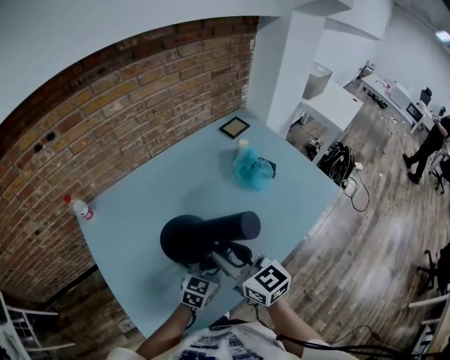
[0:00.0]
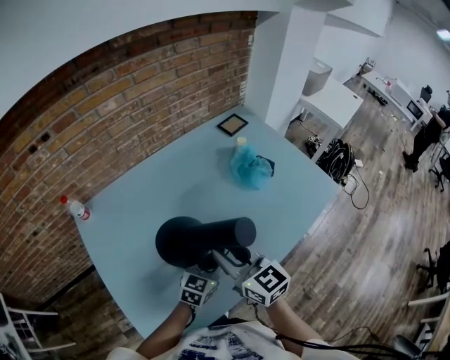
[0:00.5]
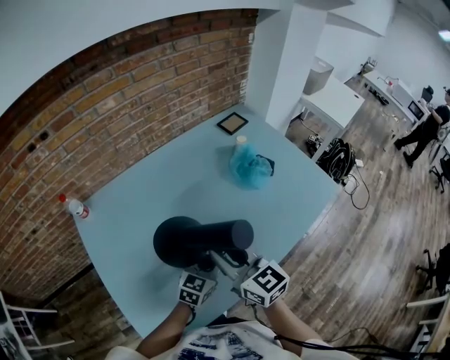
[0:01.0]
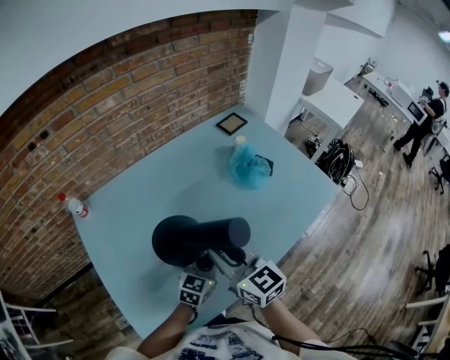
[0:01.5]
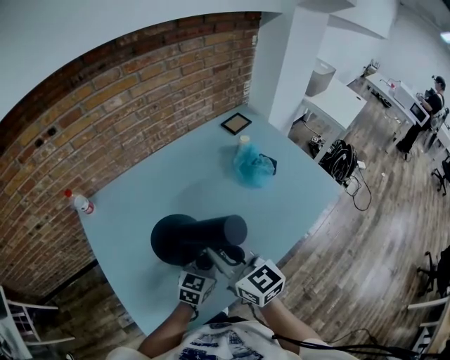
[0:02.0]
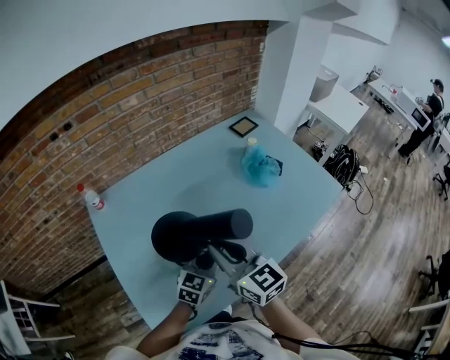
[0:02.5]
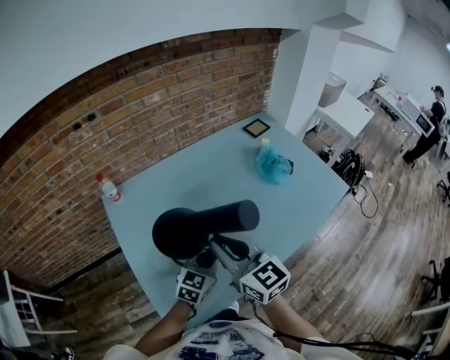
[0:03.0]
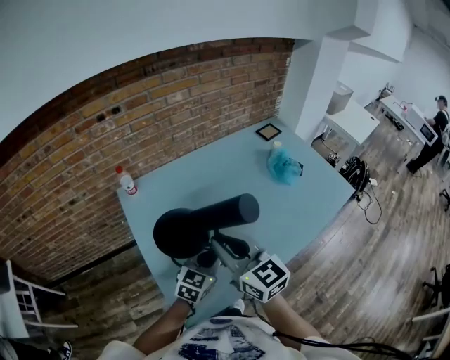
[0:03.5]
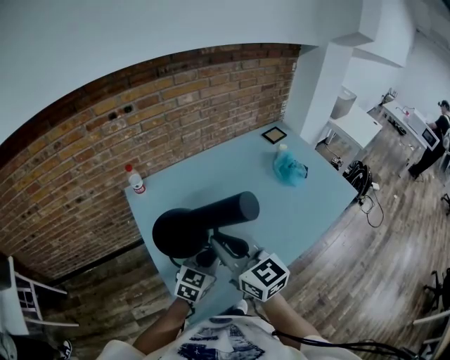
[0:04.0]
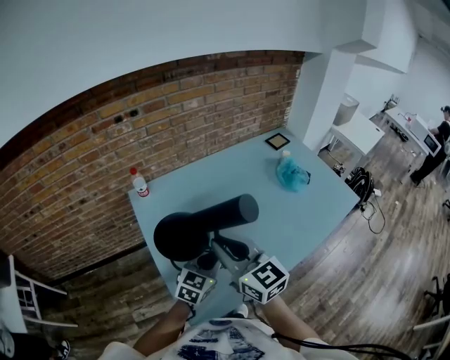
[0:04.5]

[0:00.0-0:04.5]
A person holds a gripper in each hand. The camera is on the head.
0:00.0 to 0:02.0: The right gripper closes; the left gripper closes.
0:02.0 to 0:04.5: The left gripper shifts approximately 25 cm to the left and backward. Meanwhile the right gripper goes roughly 25 cm to the left, backward and upward.

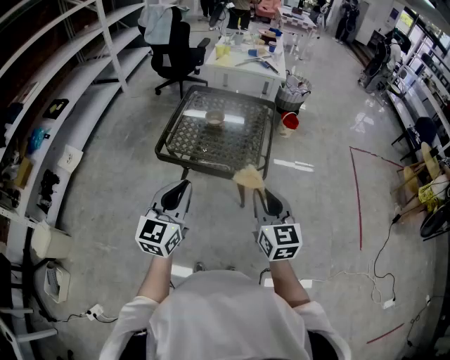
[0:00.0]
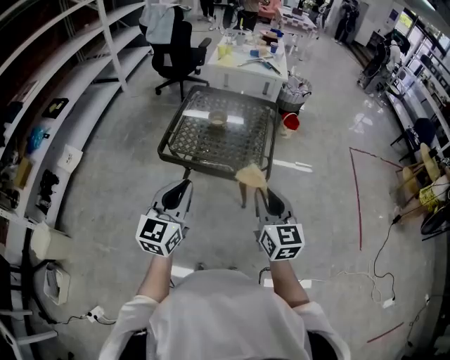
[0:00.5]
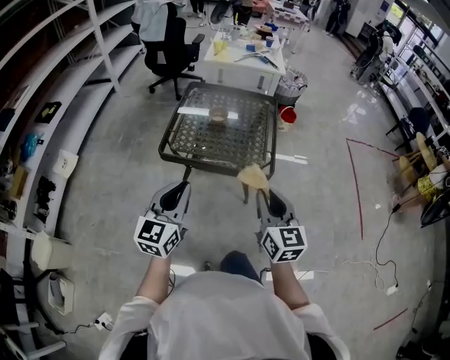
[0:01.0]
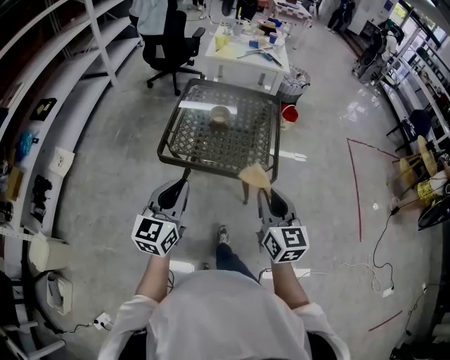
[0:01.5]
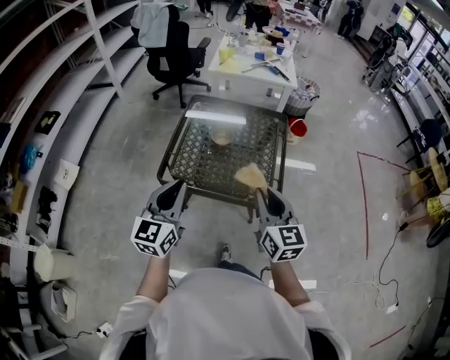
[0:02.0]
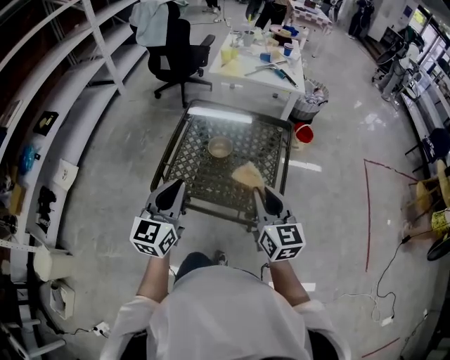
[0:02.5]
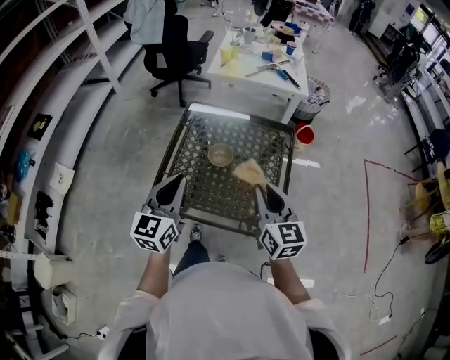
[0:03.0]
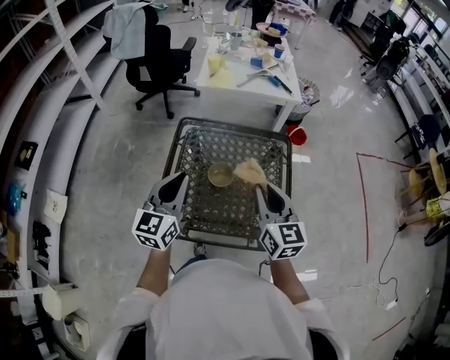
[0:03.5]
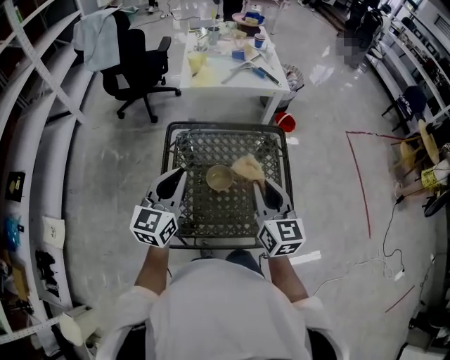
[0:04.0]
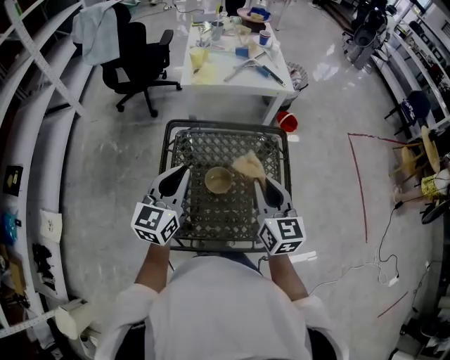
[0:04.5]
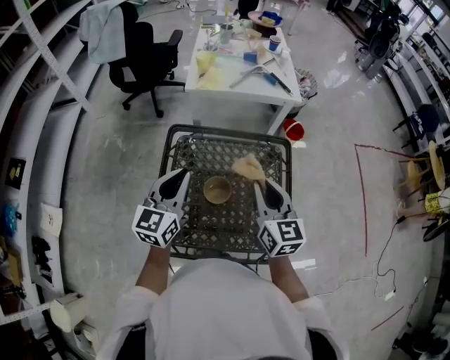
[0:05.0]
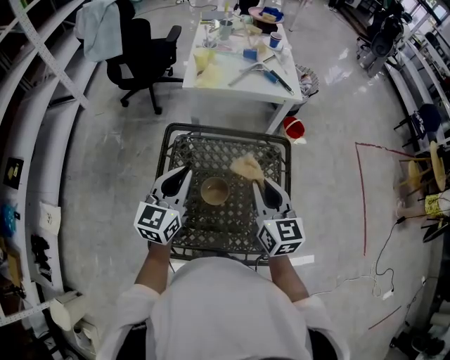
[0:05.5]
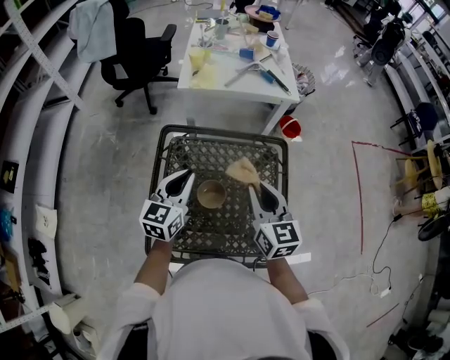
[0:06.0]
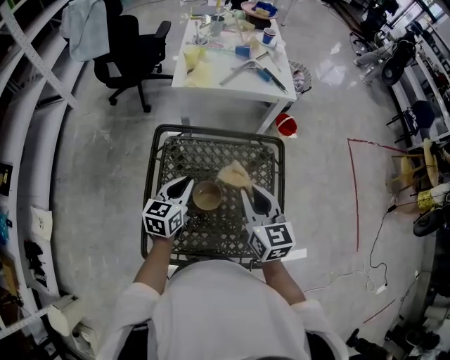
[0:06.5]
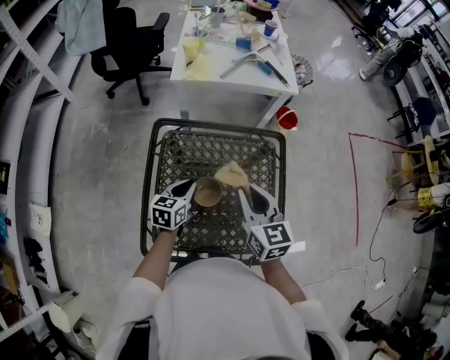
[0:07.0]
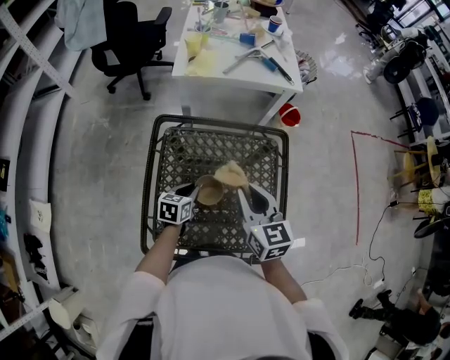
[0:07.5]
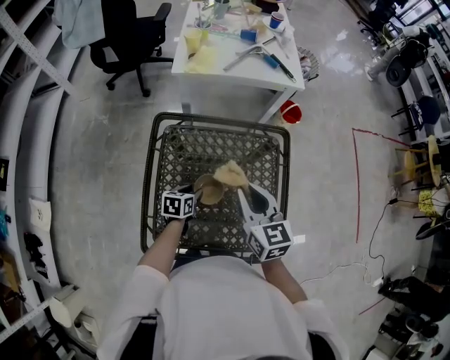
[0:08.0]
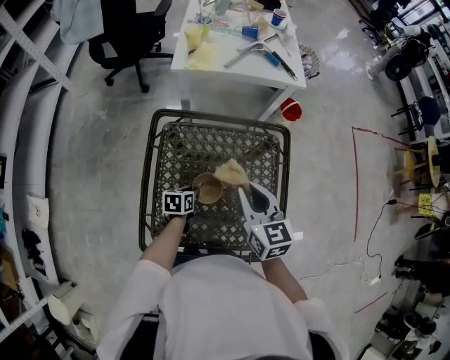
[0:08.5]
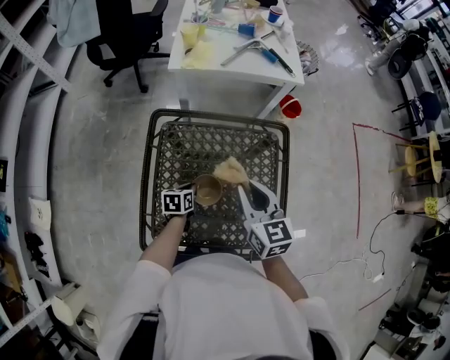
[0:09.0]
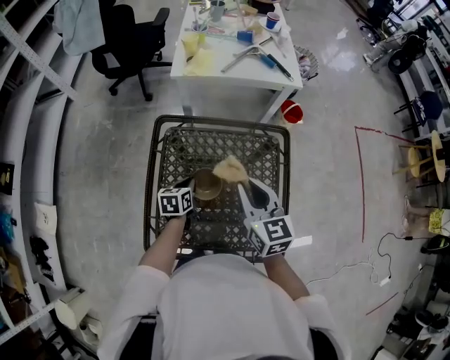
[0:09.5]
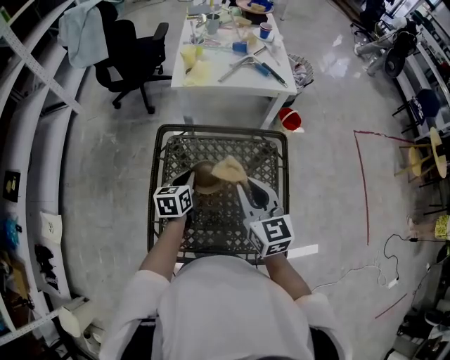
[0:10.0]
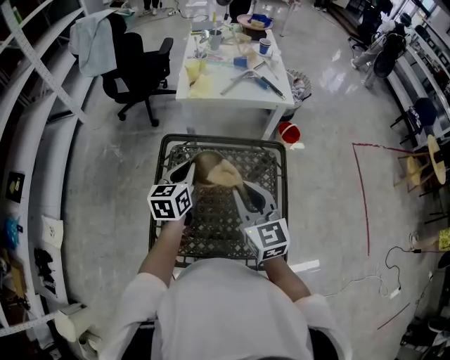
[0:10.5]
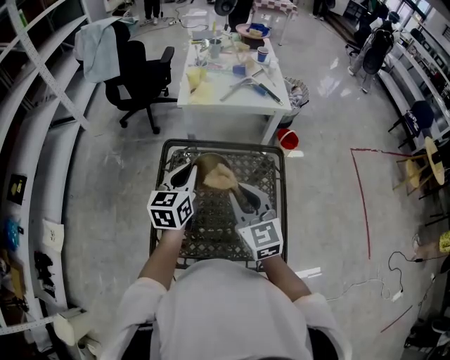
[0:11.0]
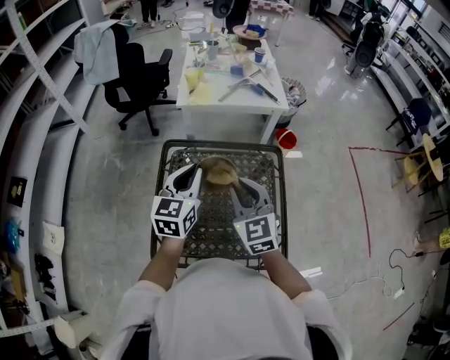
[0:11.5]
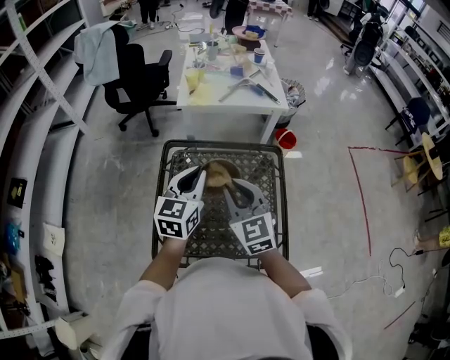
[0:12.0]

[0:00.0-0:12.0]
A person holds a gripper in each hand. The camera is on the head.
0:00.0 to 0:02.0: The two grippers go about 20 cm forward and to the left.
0:02.0 to 0:04.0: Both grippers move forward, about 30 cm.
0:04.0 to 0:06.0: The left gripper moves forward and downward, approximately 15 cm. Meanwhile the right gripper goes approximately 10 cm forward.
0:06.0 to 0:08.0: The right gripper shifts some 5 cm downward. Meanwhile the left gripper goes approximately 25 cm downward, points its fingers approximately 30 degrees further downward, and opens up.
0:08.0 to 0:10.0: The left gripper goes roughly 15 cm upward, changes its angle by about 20 degrees, and closes up.
0:10.0 to 0:12.0: The left gripper is displaced upward by approximately 20 cm, and changes its angle by approximately 30 degrees. Meanwhile the right gripper changes place by approximately 5 cm.

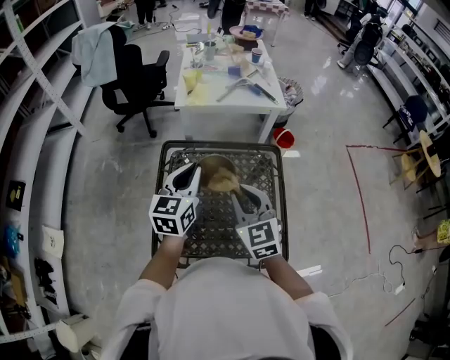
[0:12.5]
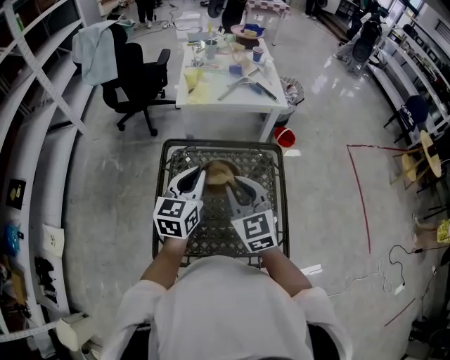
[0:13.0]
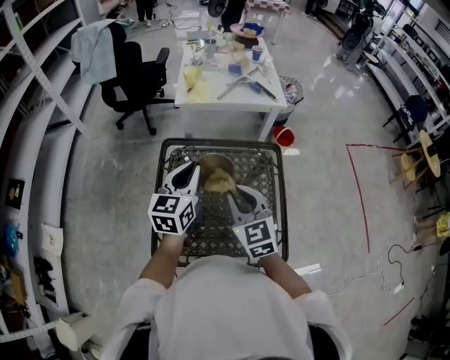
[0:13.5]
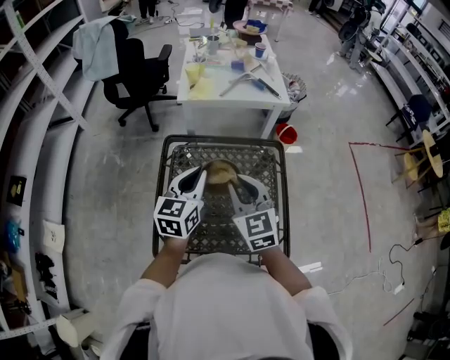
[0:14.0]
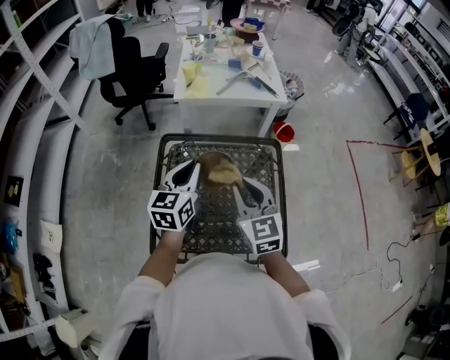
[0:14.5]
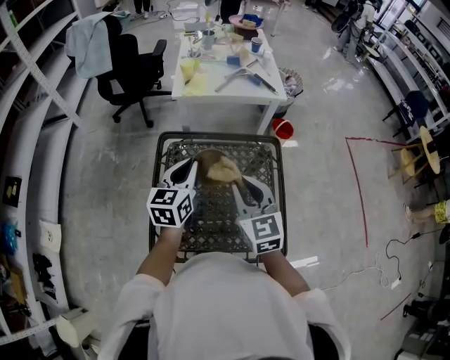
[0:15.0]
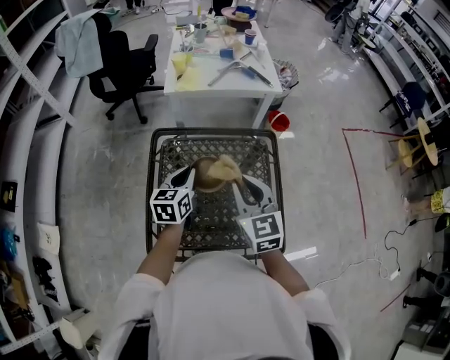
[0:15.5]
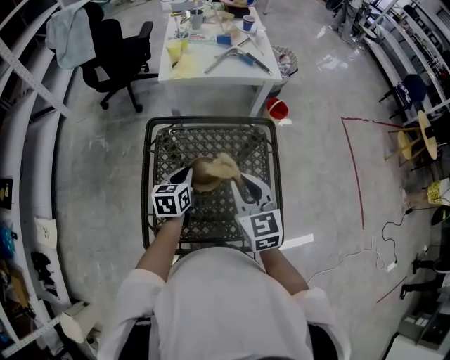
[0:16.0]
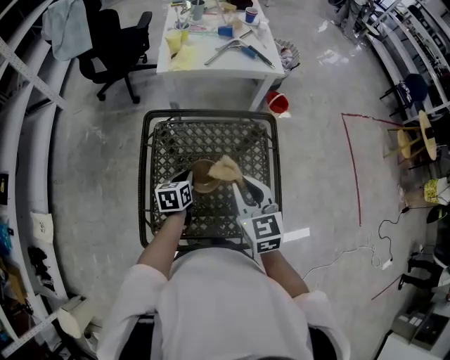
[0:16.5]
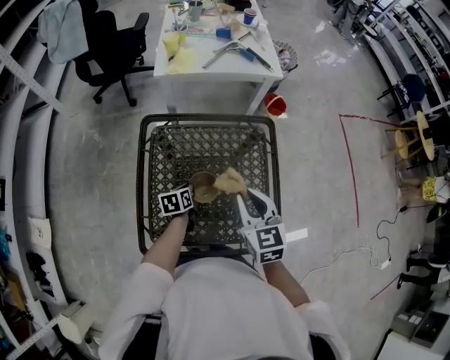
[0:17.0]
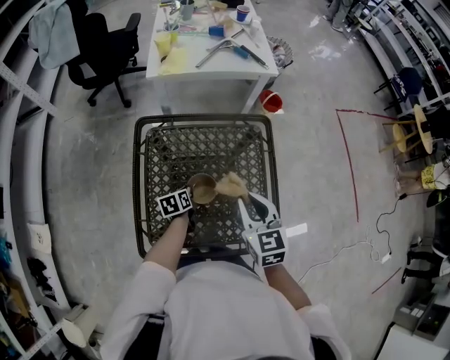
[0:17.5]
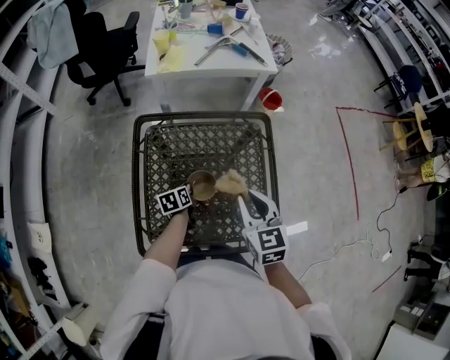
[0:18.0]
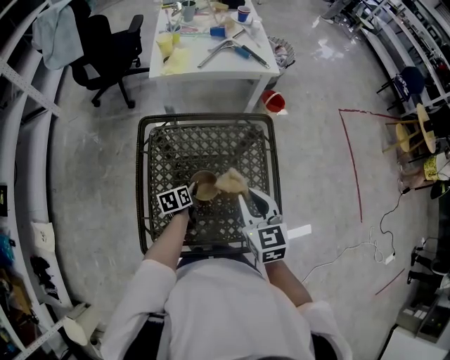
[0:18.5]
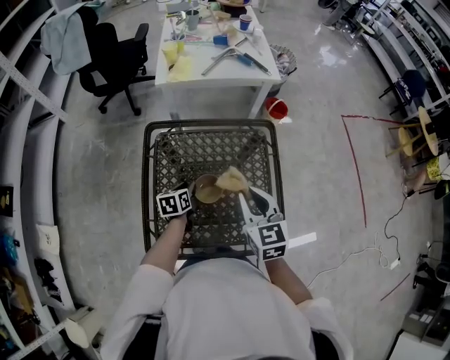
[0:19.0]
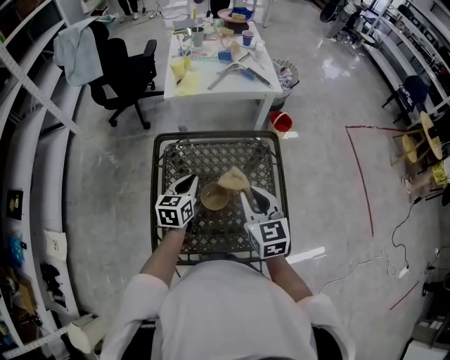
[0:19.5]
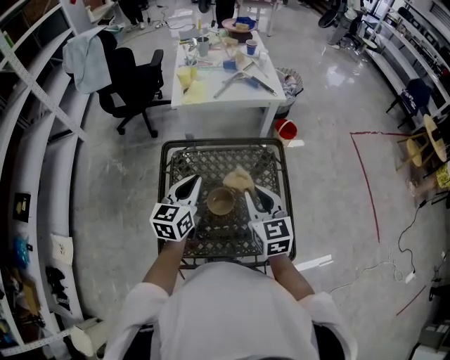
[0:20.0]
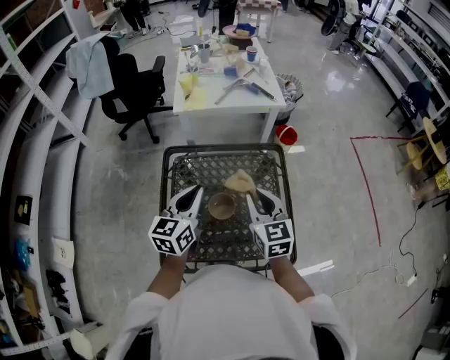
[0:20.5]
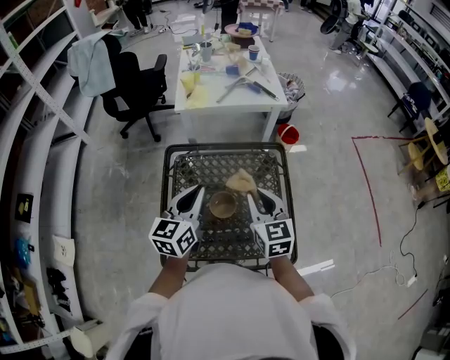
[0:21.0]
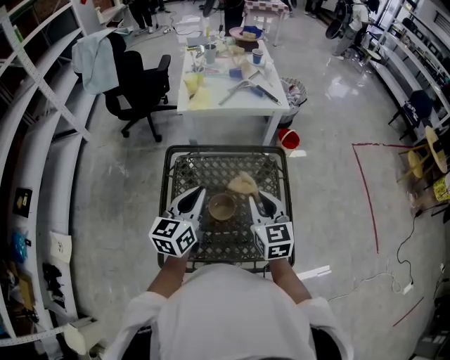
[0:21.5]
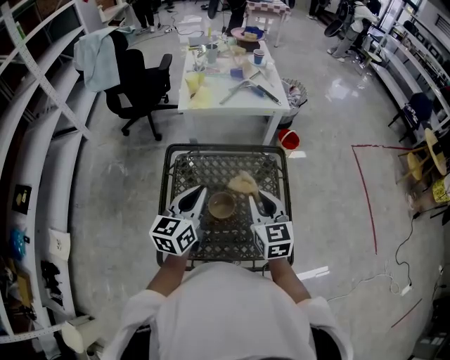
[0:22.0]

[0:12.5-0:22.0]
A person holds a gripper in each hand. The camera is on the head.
0:12.5 to 0:14.5: The grippers move only a little.
0:14.5 to 0:16.5: The right gripper goes some 5 cm downward, while the left gripper shifts about 25 cm downward, and turns by roughly 30 degrees.
0:16.5 to 0:18.0: The left gripper travels downward by about 10 cm.
0:18.0 to 0:20.0: The left gripper travels upward by approximately 30 cm, angles its fingers upward, by approximately 30 degrees, and opens, then closes again. Meanwhile the right gripper shifts by some 5 cm.
0:20.0 to 0:22.0: There are only small adjustments of the grippers.

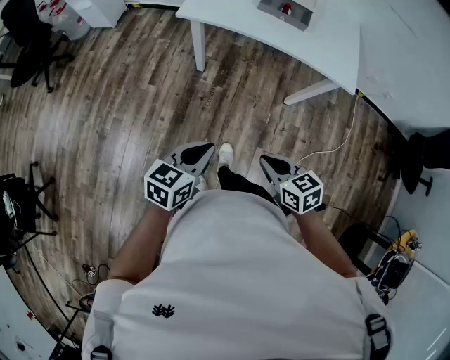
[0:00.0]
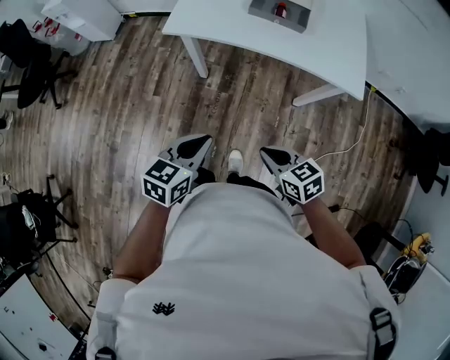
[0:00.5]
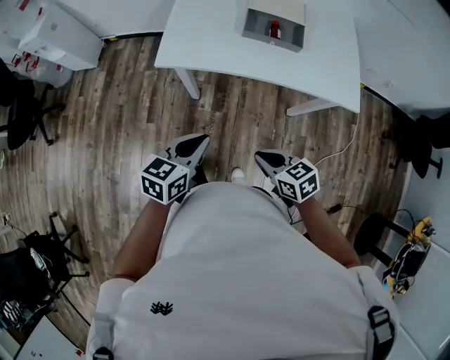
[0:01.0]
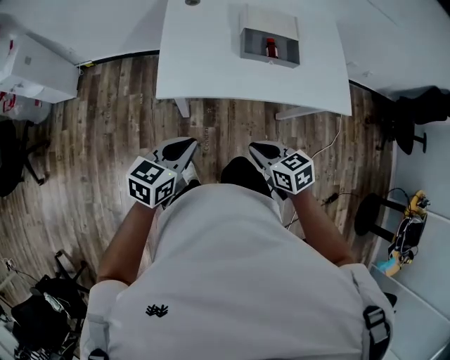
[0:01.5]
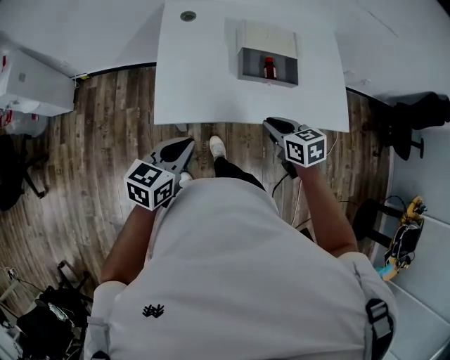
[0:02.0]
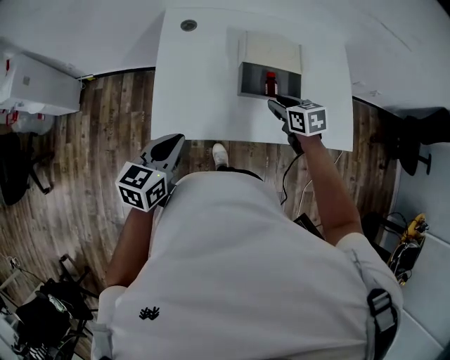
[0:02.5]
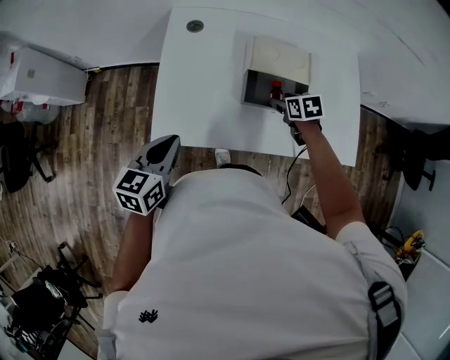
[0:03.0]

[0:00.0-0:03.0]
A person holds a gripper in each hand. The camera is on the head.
0:00.0 to 0:01.5: Both grippers travel together forward, roughly 30 cm.
0:01.5 to 0:03.0: The right gripper moves forward, approximately 35 cm, and opens up; the left gripper moves forward, some 15 cm.
